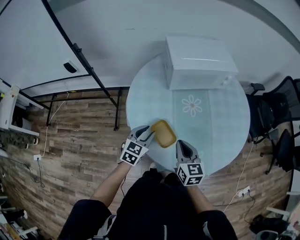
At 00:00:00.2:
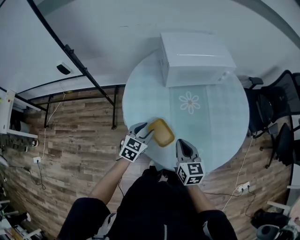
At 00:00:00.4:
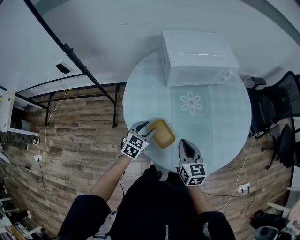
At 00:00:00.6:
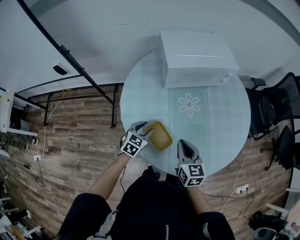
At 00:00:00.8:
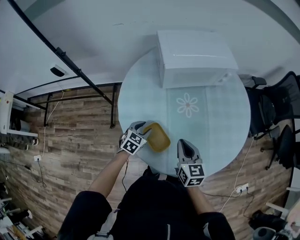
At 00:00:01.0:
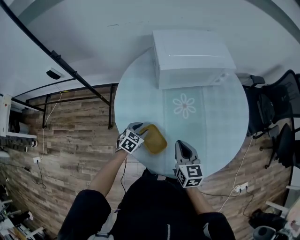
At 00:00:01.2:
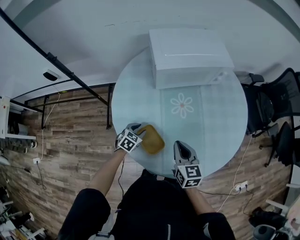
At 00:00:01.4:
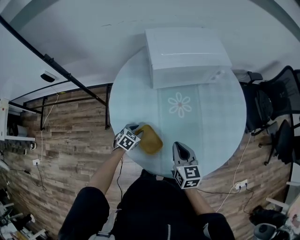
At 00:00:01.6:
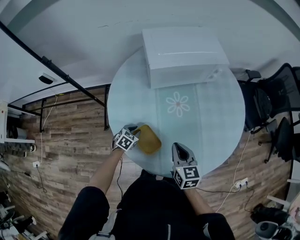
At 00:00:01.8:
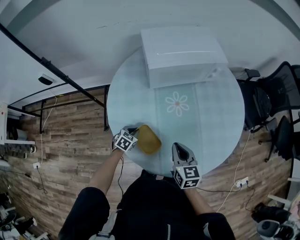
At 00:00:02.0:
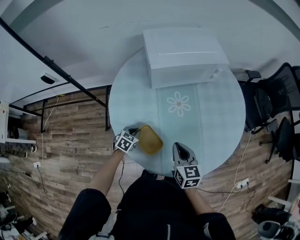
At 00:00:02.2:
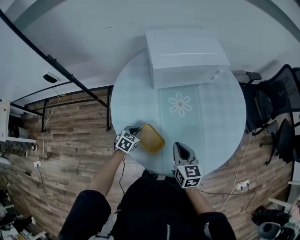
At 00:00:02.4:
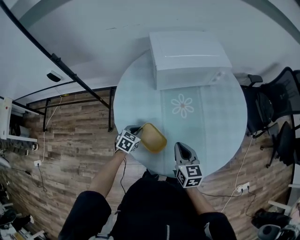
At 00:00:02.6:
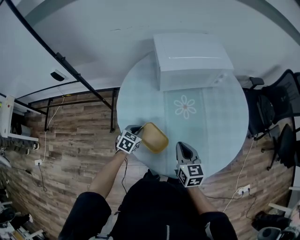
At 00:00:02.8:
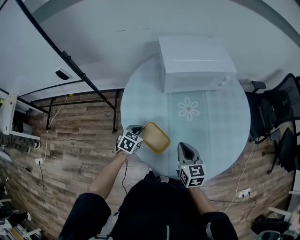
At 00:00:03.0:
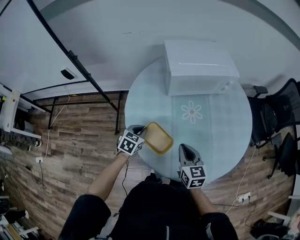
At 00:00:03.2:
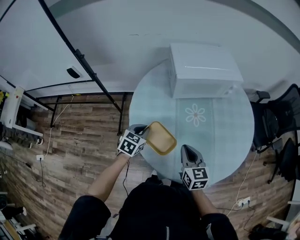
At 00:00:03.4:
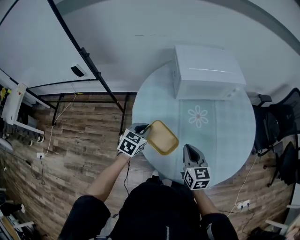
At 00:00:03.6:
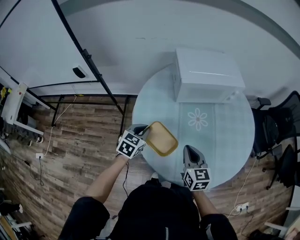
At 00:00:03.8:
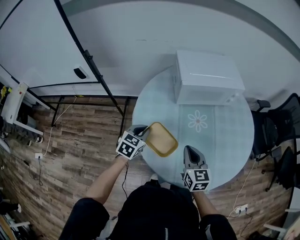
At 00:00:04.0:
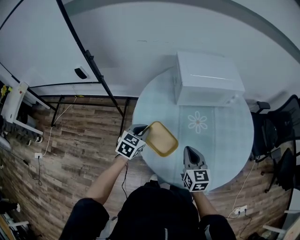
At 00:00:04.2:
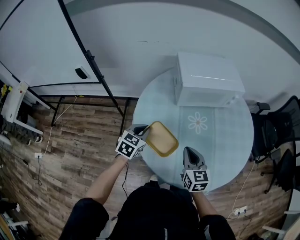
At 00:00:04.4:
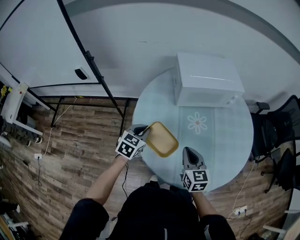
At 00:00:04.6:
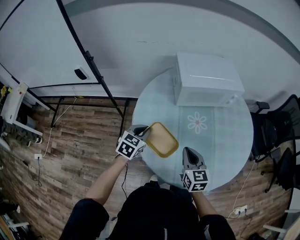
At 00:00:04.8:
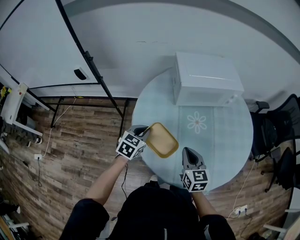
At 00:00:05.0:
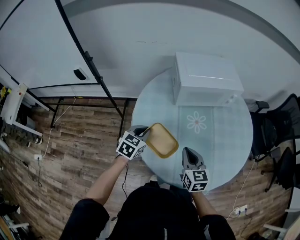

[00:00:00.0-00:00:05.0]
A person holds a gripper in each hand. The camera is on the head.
00:00:00.0 to 00:00:01.6: The left gripper goes roughly 20 cm downward, and swivels about 30 degrees; the right gripper goes about 10 cm to the right and forward.
00:00:01.6 to 00:00:03.4: The right gripper is displaced to the left by some 5 cm. Meanwhile the left gripper moves upward, some 20 cm, turns by about 20 degrees, and closes up.
00:00:03.4 to 00:00:05.0: The grippers stay close to where they were, moving slightly.

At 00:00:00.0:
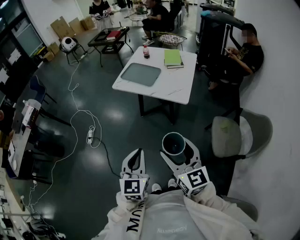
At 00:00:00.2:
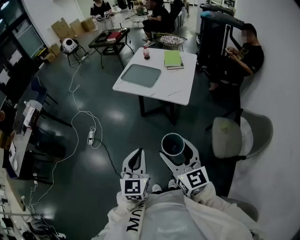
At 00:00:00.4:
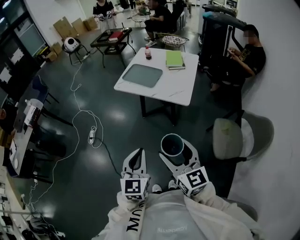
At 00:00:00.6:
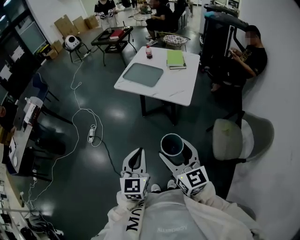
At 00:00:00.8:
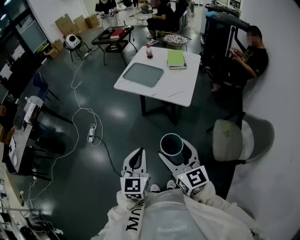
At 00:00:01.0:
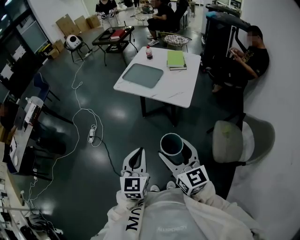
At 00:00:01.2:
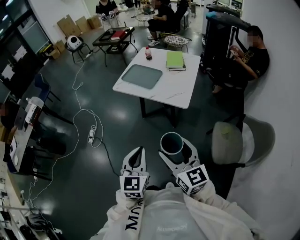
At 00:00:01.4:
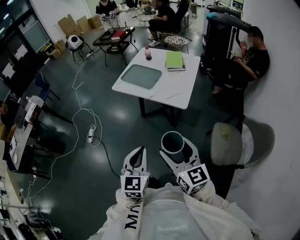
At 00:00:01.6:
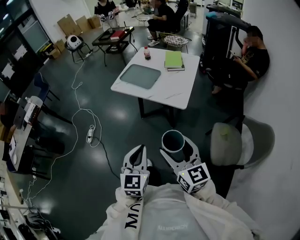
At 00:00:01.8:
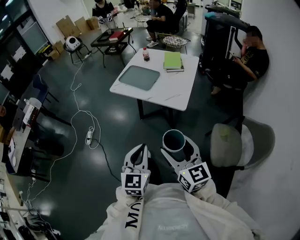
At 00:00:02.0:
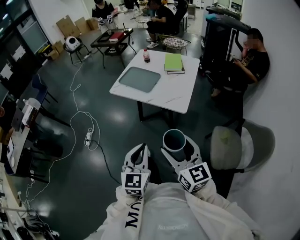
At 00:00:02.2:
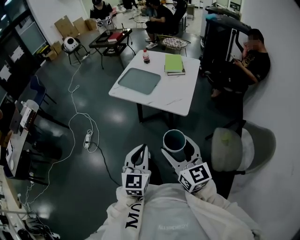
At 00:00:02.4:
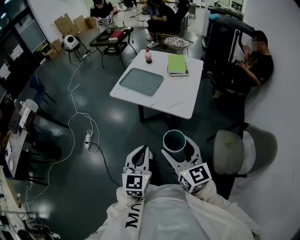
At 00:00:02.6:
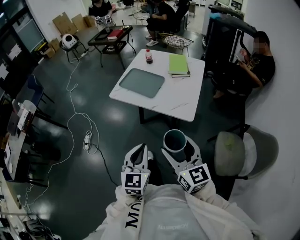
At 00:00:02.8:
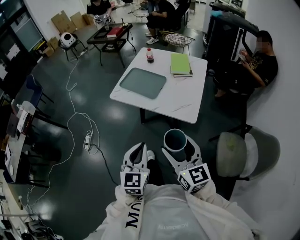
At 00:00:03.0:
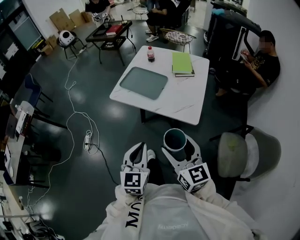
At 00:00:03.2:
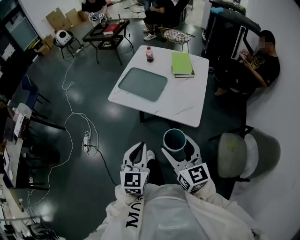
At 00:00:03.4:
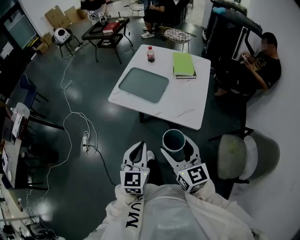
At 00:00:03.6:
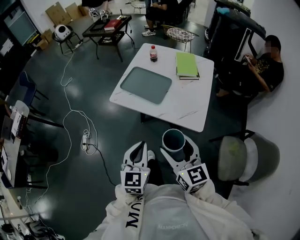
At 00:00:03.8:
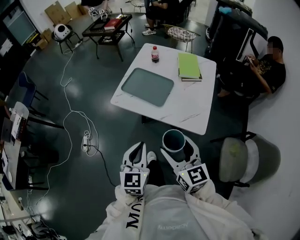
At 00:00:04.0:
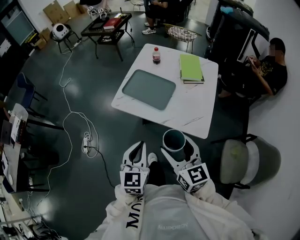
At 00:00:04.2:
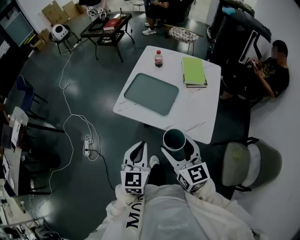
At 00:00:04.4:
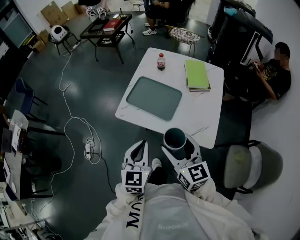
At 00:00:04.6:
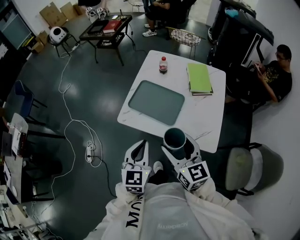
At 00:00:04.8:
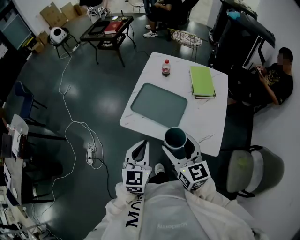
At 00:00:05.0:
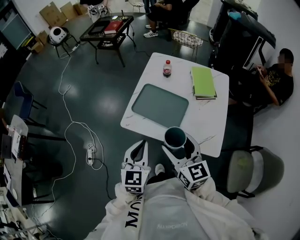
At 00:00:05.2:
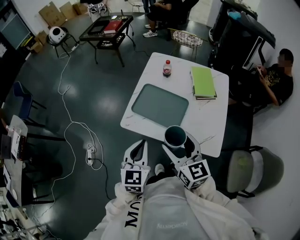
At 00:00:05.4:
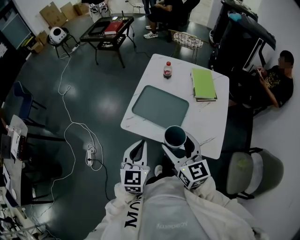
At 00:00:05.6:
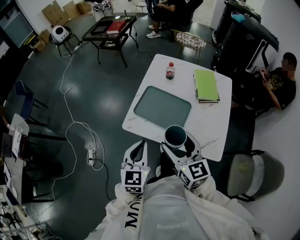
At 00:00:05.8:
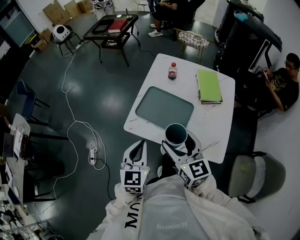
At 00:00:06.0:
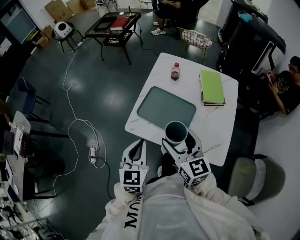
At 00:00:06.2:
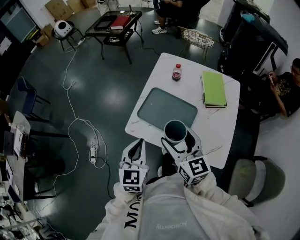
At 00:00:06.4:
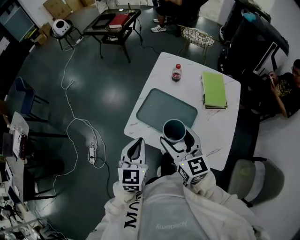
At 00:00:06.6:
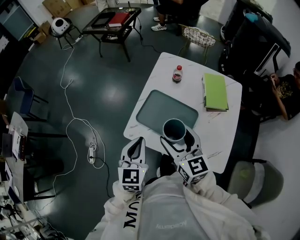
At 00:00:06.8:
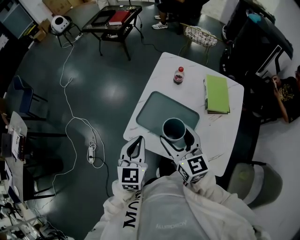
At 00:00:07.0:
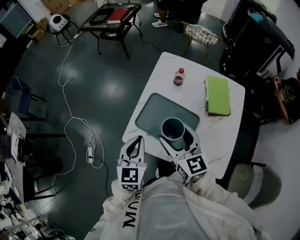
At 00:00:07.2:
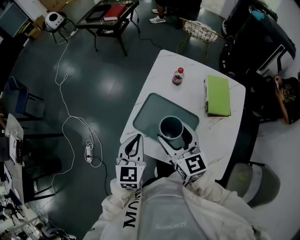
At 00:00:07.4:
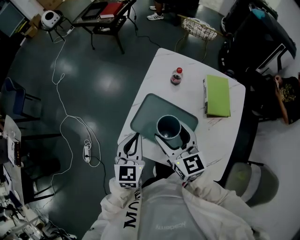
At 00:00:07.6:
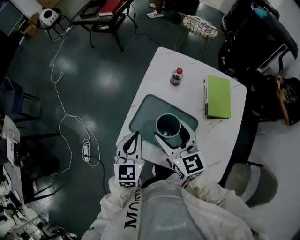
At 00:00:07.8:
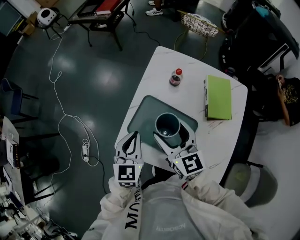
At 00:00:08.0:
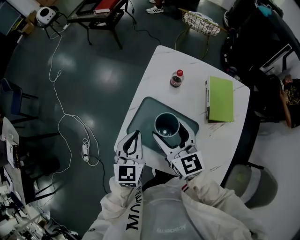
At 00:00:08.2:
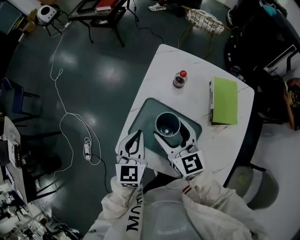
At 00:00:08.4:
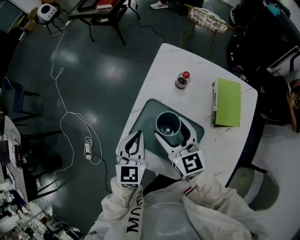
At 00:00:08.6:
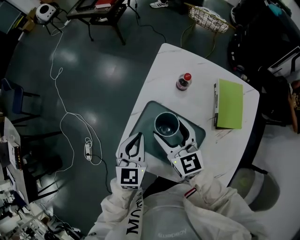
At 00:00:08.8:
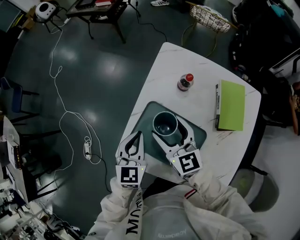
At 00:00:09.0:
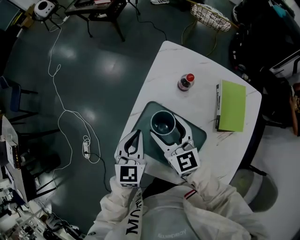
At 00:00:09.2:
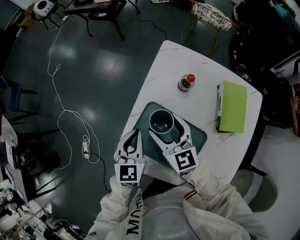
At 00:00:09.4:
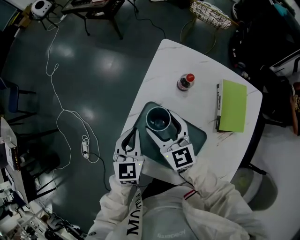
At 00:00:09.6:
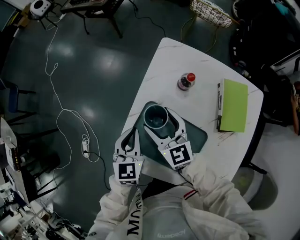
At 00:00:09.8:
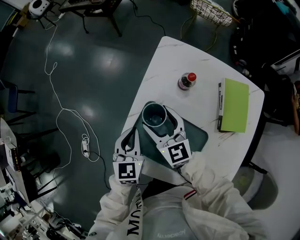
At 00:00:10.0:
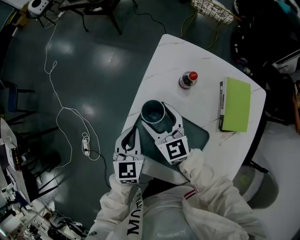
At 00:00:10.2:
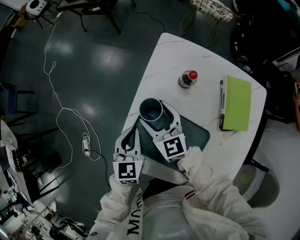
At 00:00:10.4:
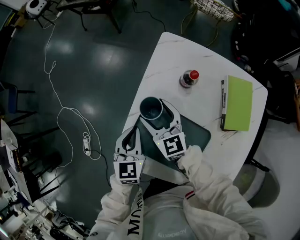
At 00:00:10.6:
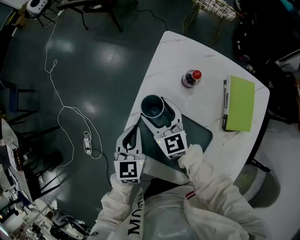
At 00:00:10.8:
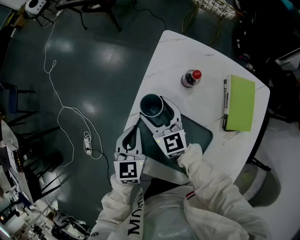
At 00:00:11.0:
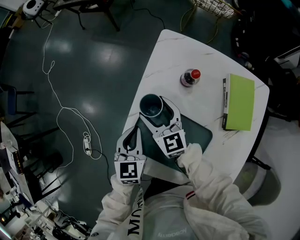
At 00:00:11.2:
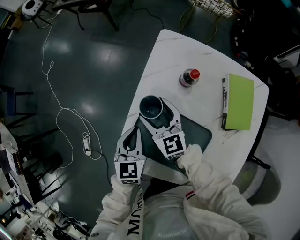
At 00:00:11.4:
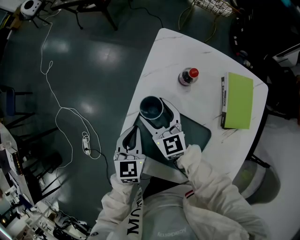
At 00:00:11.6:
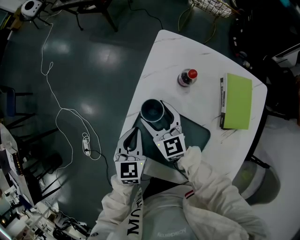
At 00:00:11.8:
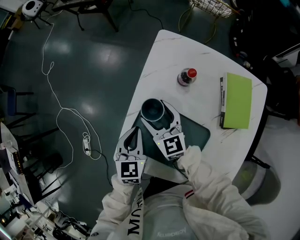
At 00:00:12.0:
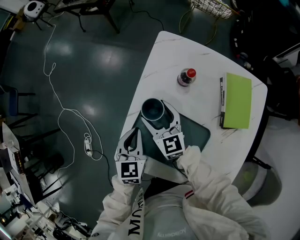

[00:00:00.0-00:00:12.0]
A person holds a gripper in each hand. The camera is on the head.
00:00:00.0 to 00:00:01.6: Both grippers travel together to the right, some 5 cm.
00:00:01.6 to 00:00:03.0: The grippers both shift forward by some 20 cm.
00:00:03.0 to 00:00:04.4: The grippers both shift forward by roughly 20 cm.
00:00:04.4 to 00:00:06.0: The left gripper travels forward and to the left by roughly 15 cm. The right gripper shifts approximately 15 cm forward.
00:00:06.0 to 00:00:07.6: Both grippers move forward, approximately 20 cm.
00:00:07.6 to 00:00:09.0: The grippers both shift forward and downward by some 10 cm.
00:00:09.0 to 00:00:10.4: The right gripper heads downward and forward, covering some 10 cm. Meanwhile the left gripper changes place by about 5 cm.
00:00:10.4 to 00:00:12.0: The grippers stay close to where they were, moving slightly.

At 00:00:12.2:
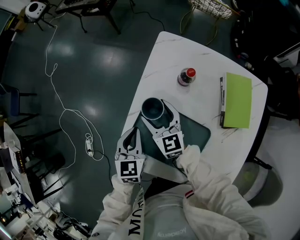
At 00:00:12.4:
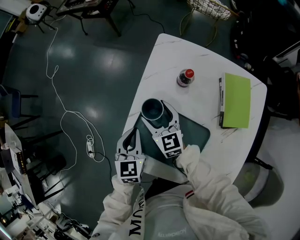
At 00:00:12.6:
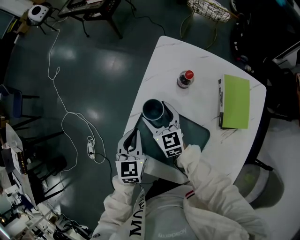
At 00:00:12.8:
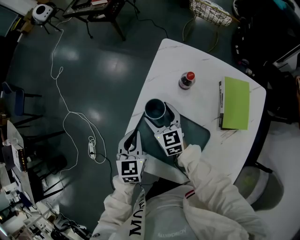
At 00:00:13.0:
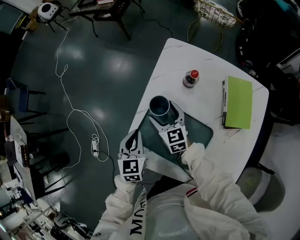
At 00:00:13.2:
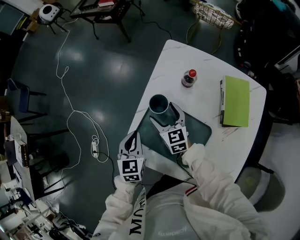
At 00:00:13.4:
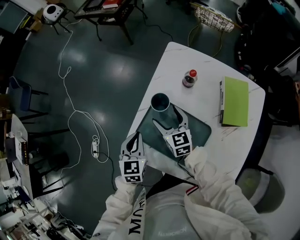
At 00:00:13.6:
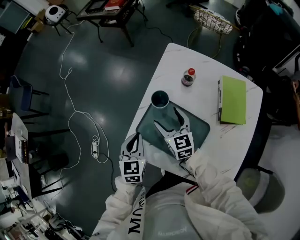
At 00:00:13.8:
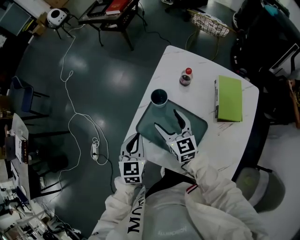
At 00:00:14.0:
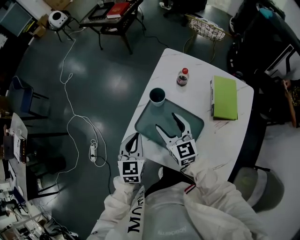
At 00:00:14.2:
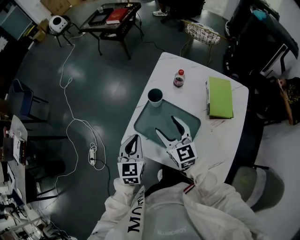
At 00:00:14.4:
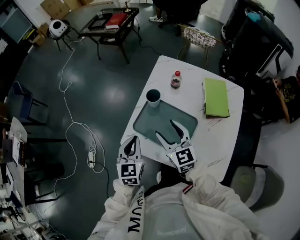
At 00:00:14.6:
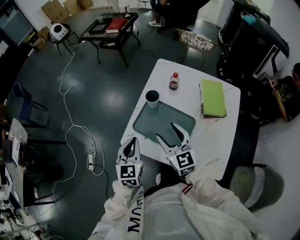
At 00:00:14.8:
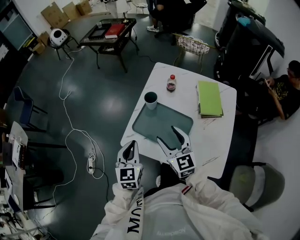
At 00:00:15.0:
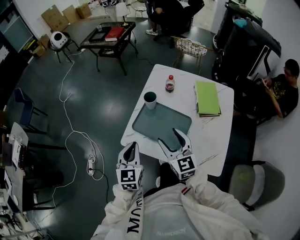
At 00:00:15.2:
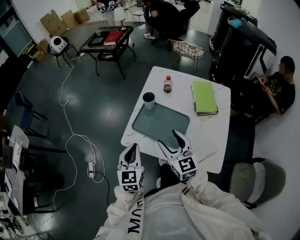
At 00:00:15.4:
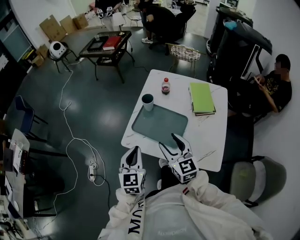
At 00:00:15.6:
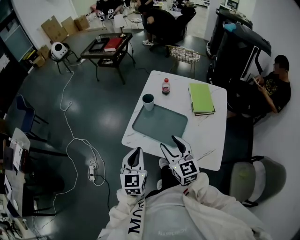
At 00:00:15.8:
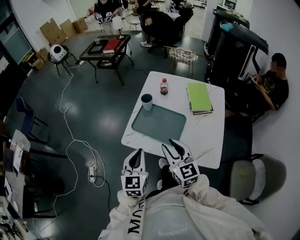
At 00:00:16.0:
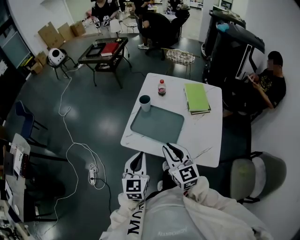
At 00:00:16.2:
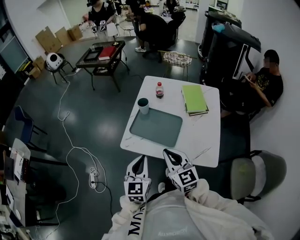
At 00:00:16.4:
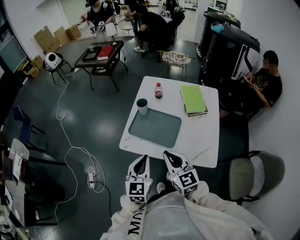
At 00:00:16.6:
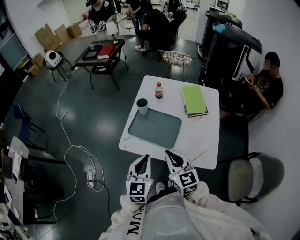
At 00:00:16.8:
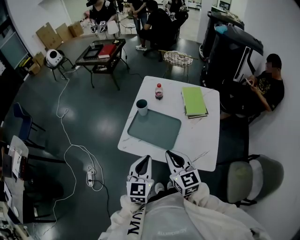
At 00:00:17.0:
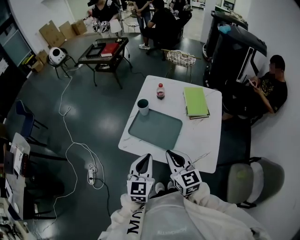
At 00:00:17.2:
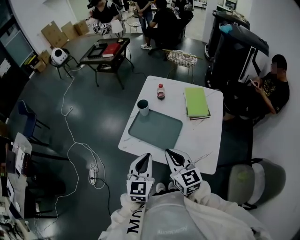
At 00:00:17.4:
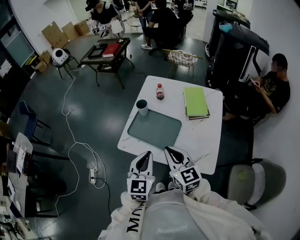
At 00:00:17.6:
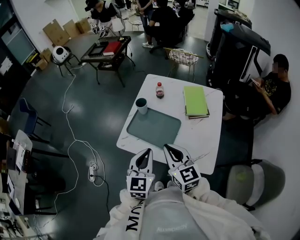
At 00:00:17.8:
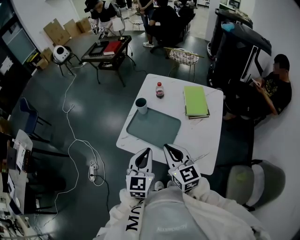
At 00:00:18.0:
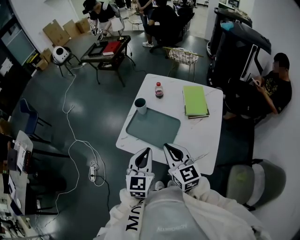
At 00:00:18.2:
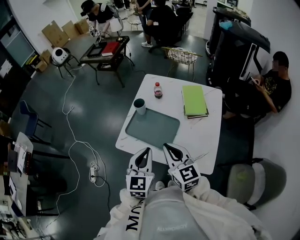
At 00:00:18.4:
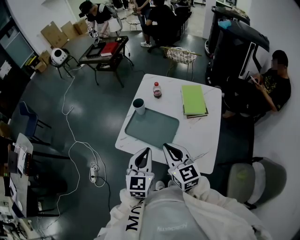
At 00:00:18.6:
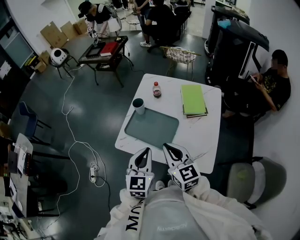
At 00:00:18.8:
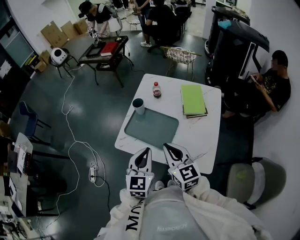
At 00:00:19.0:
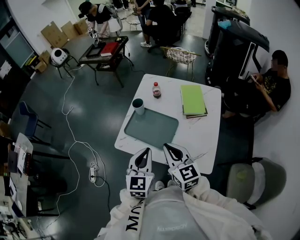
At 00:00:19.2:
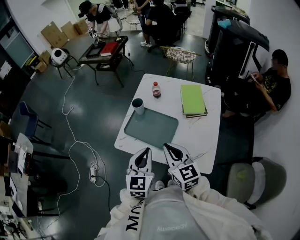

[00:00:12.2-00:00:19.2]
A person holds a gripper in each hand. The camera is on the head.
00:00:12.2 to 00:00:13.6: Both grippers move backward, some 5 cm.
00:00:13.6 to 00:00:15.0: The two grippers go some 20 cm backward and upward.
00:00:15.0 to 00:00:16.4: The left gripper heads backward and to the right, covering about 10 cm. Meanwhile the right gripper moves backward, approximately 15 cm, and closes.
00:00:16.4 to 00:00:17.8: The two grippers go some 5 cm to the right.
00:00:17.8 to 00:00:19.2: The grippers move only a little.
